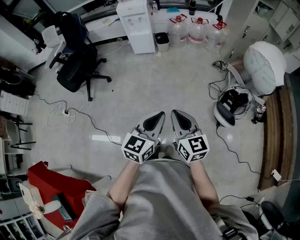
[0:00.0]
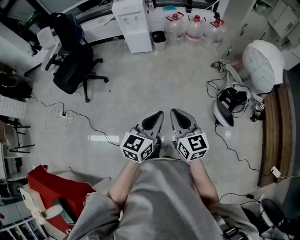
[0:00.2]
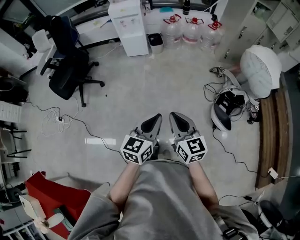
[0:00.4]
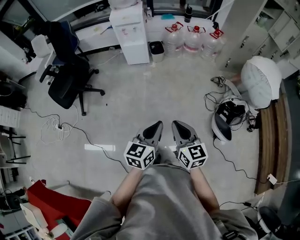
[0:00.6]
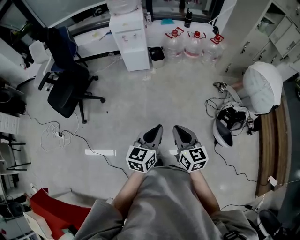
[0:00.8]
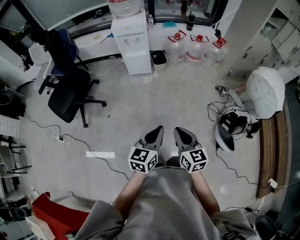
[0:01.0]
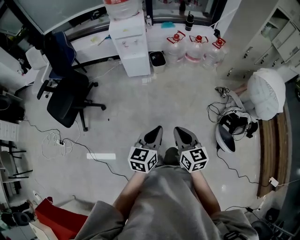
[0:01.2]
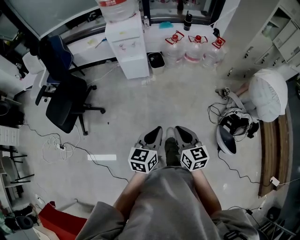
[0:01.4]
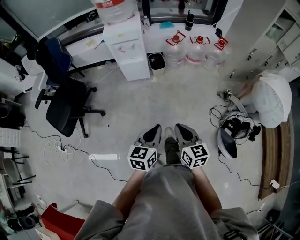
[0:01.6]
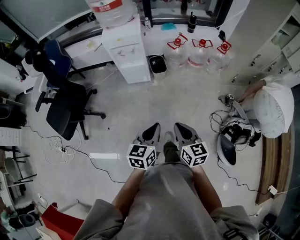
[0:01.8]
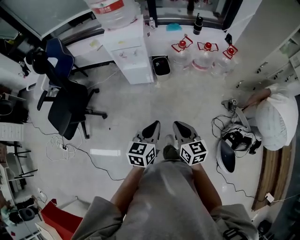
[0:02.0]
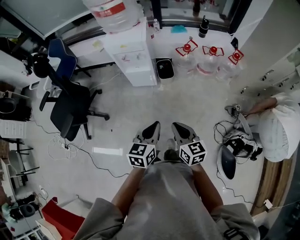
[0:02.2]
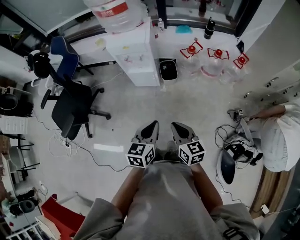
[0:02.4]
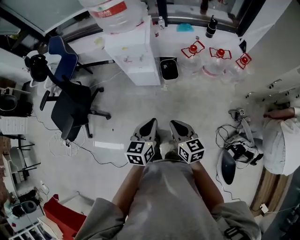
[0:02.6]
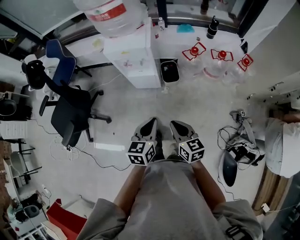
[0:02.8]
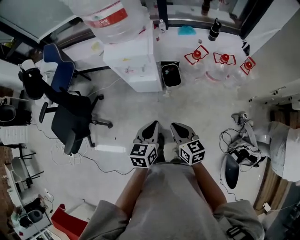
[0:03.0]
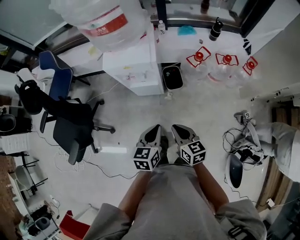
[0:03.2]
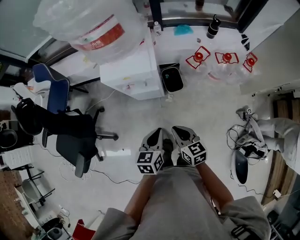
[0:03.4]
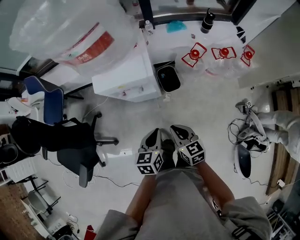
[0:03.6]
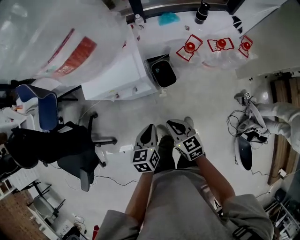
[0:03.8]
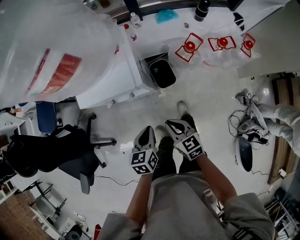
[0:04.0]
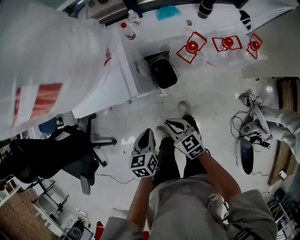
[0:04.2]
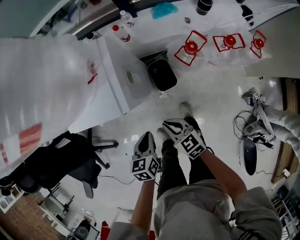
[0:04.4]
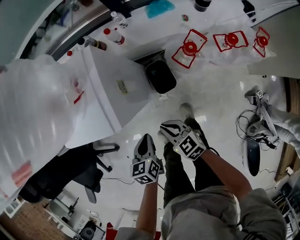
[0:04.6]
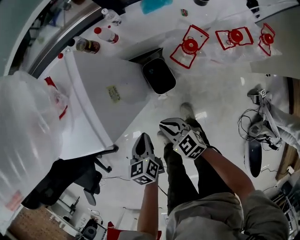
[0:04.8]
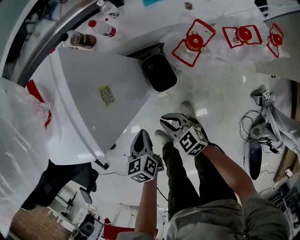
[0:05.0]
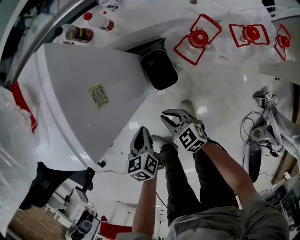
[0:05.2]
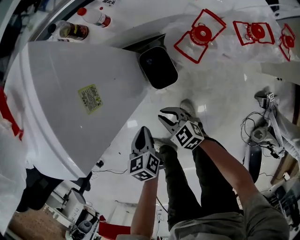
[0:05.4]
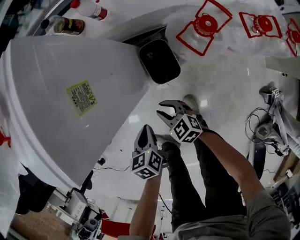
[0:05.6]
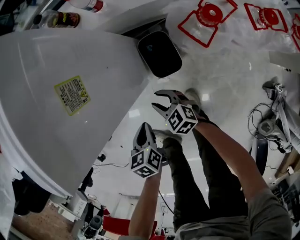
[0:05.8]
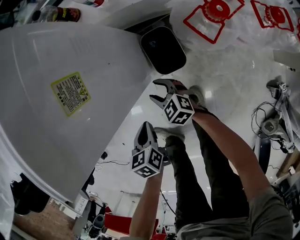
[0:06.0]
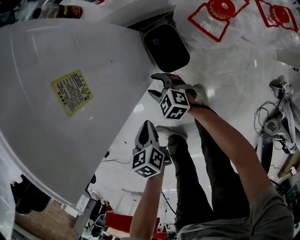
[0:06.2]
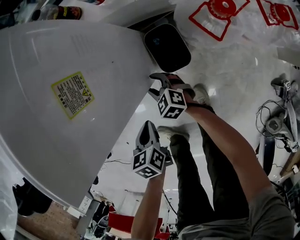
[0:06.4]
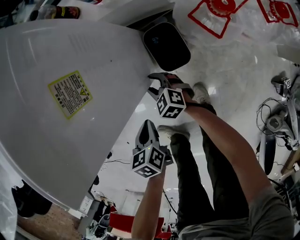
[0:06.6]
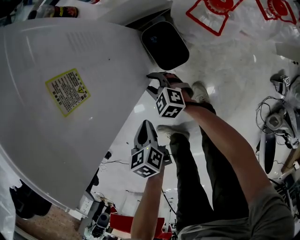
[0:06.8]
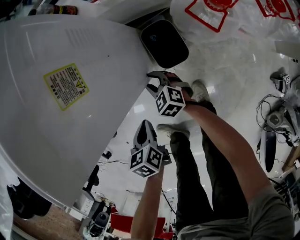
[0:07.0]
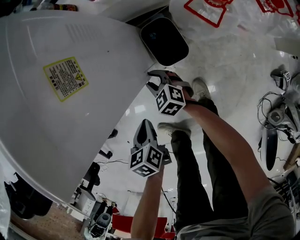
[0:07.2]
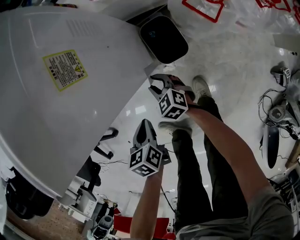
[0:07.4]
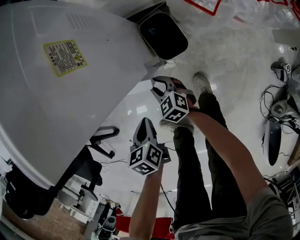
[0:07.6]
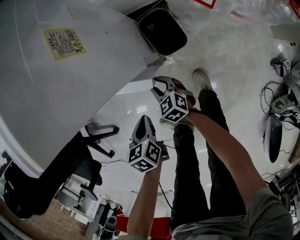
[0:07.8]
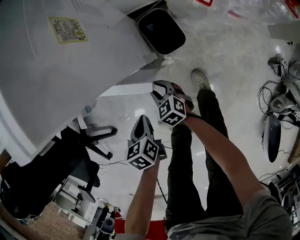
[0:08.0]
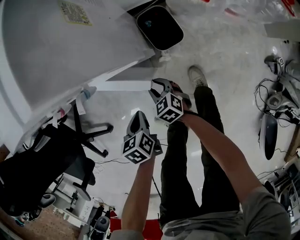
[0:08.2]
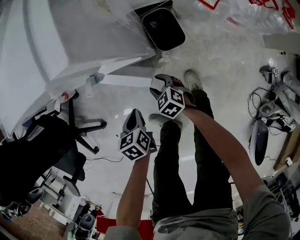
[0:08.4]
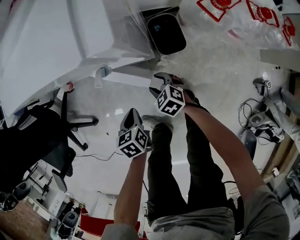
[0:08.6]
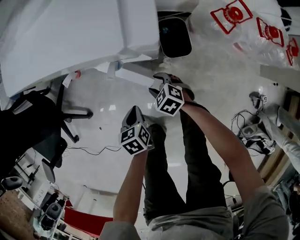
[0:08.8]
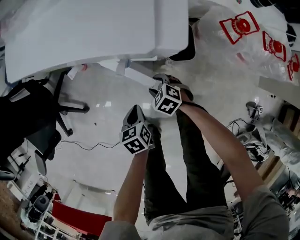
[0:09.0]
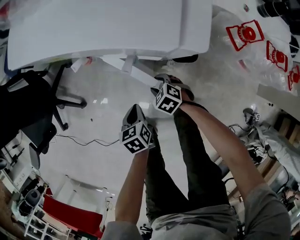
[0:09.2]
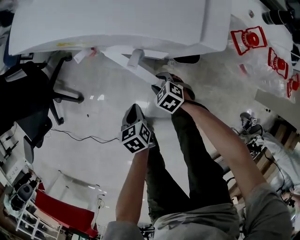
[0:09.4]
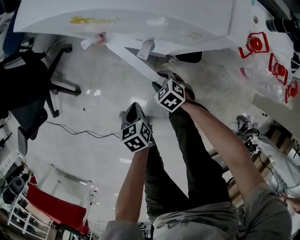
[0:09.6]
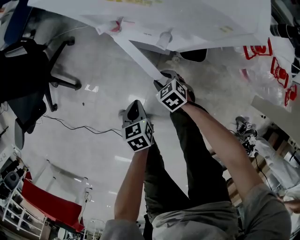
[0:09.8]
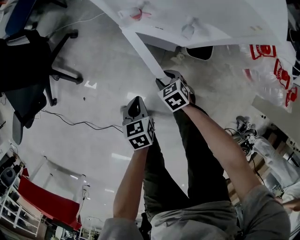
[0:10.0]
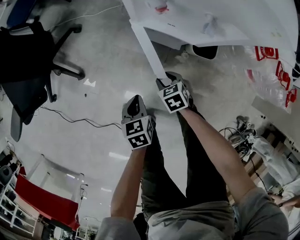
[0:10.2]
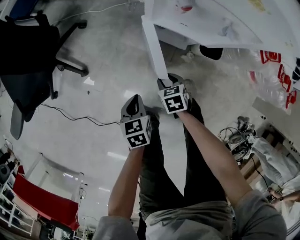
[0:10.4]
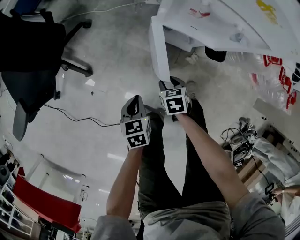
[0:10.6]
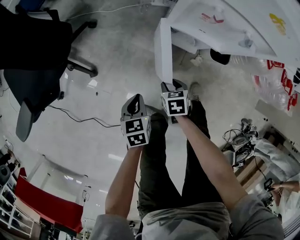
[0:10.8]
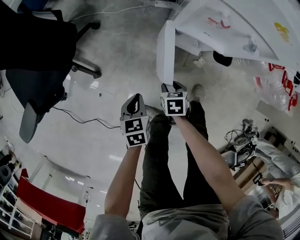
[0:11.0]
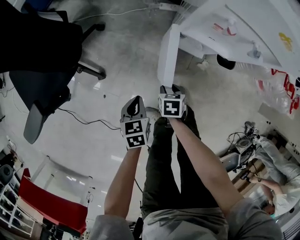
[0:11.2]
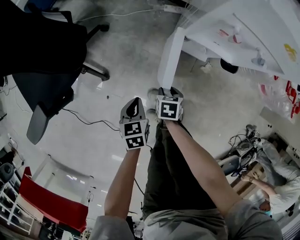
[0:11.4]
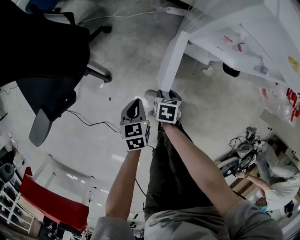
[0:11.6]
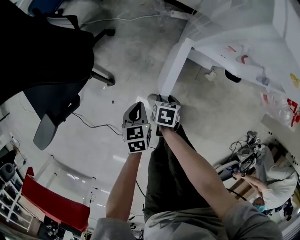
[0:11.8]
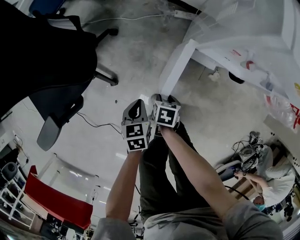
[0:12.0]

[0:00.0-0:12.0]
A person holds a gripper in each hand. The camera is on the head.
0:00.0 to 0:01.6: Both grippers travel together forward, roughly 35 cm.
0:01.6 to 0:03.0: The two grippers go roughly 35 cm forward.
0:03.0 to 0:04.4: The two grippers go some 30 cm forward and downward.
0:04.4 to 0:06.0: Both grippers travel together downward, about 25 cm. The left gripper swivels roughly 20 degrees. The right gripper changes its angle by approximately 20 degrees, and opens up.
0:06.0 to 0:07.6: The right gripper changes place by about 5 cm. Meanwhile the left gripper heads to the left, covering roughly 5 cm.
0:07.6 to 0:09.0: The left gripper shifts by approximately 5 cm, while the right gripper ends up some 10 cm from where it was, and changes its angle by roughly 30 degrees.
0:09.0 to 0:10.4: Both grippers travel together to the left, some 15 cm. The right gripper changes its angle by some 20 degrees.
0:10.4 to 0:12.0: The left gripper shifts by some 20 cm, while the right gripper moves approximately 20 cm, and turns by some 30 degrees.

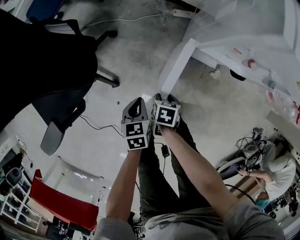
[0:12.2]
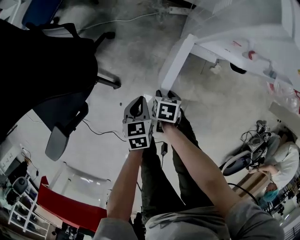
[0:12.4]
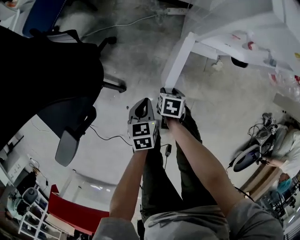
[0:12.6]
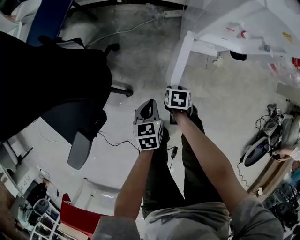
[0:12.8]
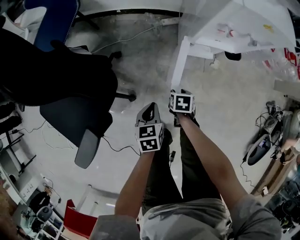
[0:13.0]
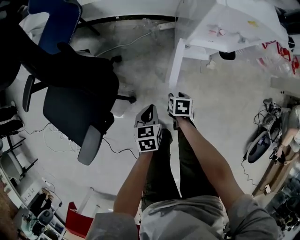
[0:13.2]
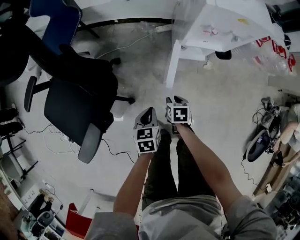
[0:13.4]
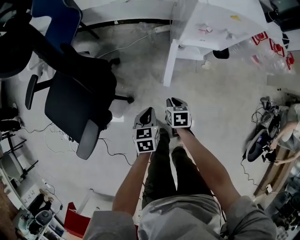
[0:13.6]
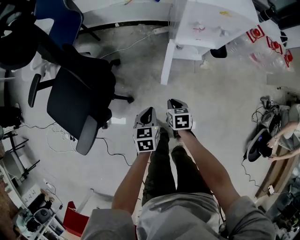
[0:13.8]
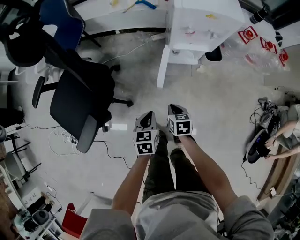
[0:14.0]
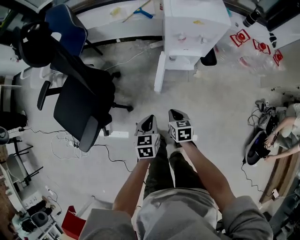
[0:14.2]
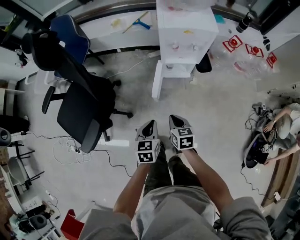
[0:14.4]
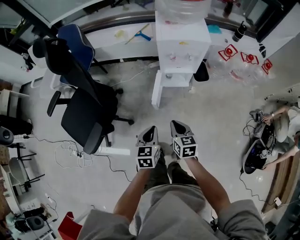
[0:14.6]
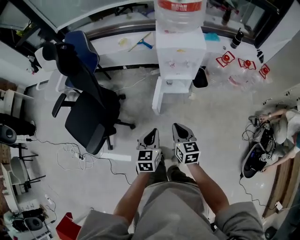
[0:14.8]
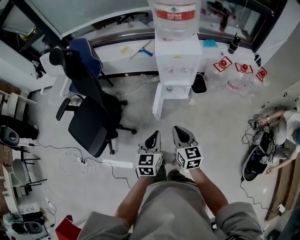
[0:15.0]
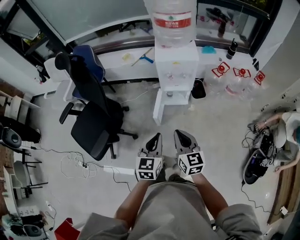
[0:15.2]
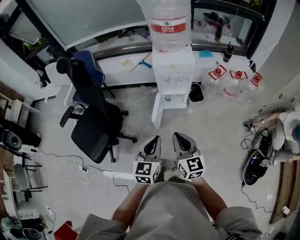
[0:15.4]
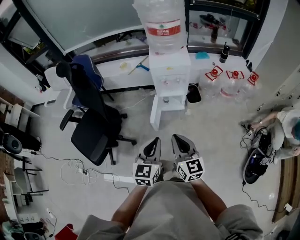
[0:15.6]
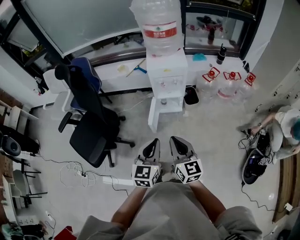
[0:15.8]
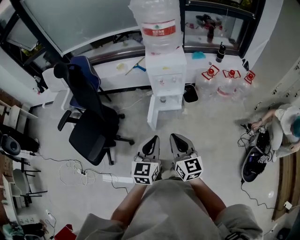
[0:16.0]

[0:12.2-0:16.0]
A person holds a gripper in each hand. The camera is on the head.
0:12.2 to 0:13.4: The grippers both shift upward by some 10 cm.
0:13.4 to 0:14.8: The right gripper moves upward and backward, some 40 cm, tilts its fingers approximately 40 degrees upward, and closes. Meanwhile the left gripper goes approximately 30 cm upward, backward and to the right, and swivels some 20 degrees.
0:14.8 to 0:16.0: Both grippers move upward and backward, roughly 20 cm. The right gripper rotates about 20 degrees. Meanwhile the left gripper changes its angle by approximately 20 degrees.

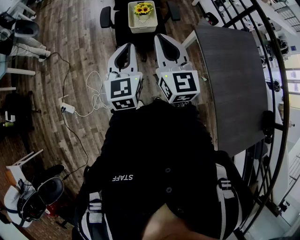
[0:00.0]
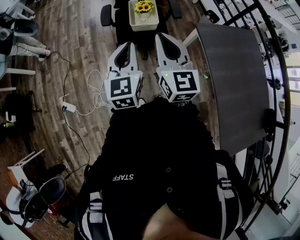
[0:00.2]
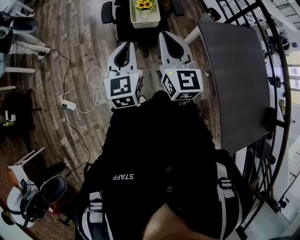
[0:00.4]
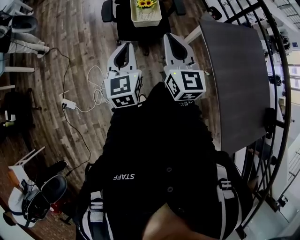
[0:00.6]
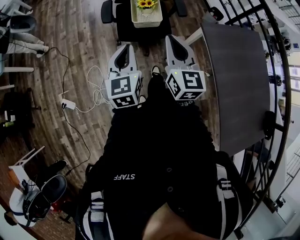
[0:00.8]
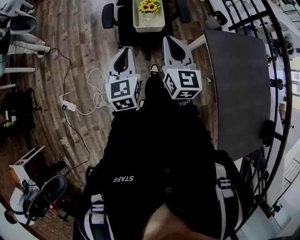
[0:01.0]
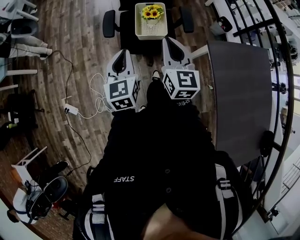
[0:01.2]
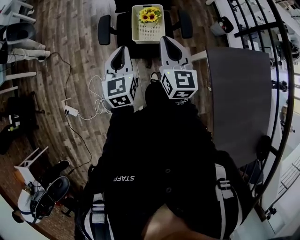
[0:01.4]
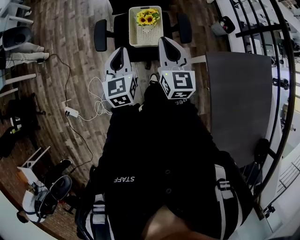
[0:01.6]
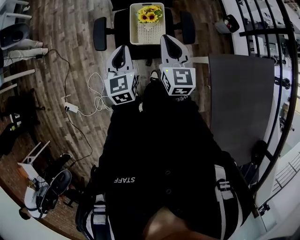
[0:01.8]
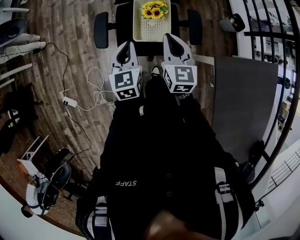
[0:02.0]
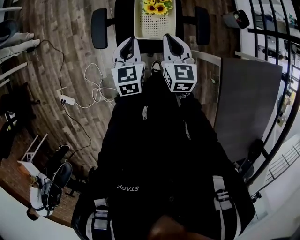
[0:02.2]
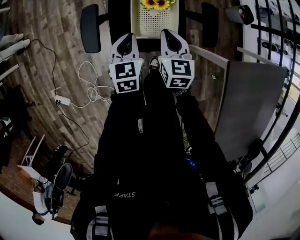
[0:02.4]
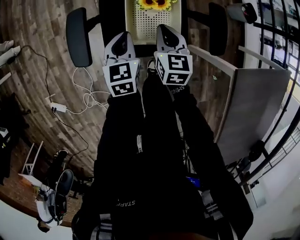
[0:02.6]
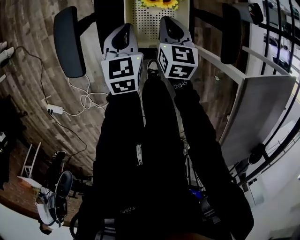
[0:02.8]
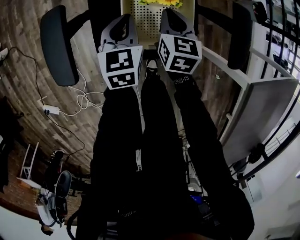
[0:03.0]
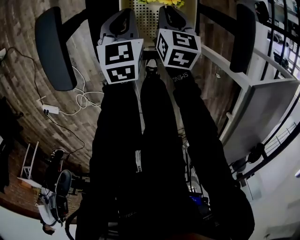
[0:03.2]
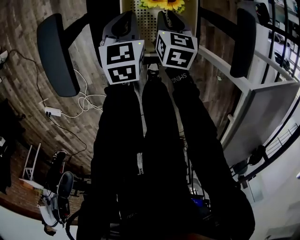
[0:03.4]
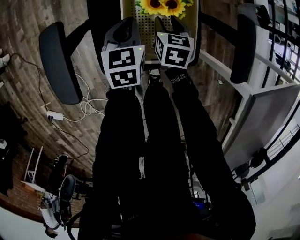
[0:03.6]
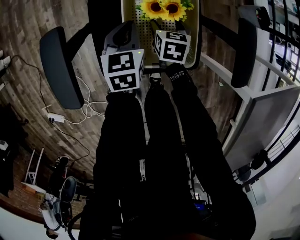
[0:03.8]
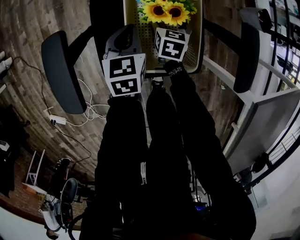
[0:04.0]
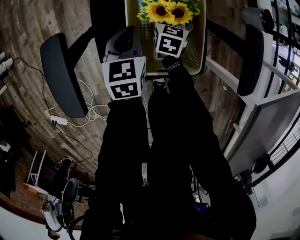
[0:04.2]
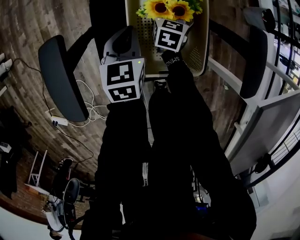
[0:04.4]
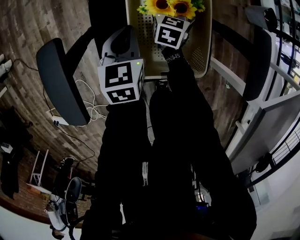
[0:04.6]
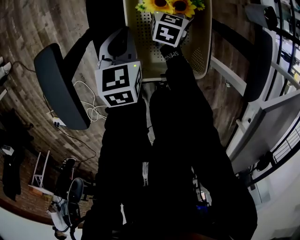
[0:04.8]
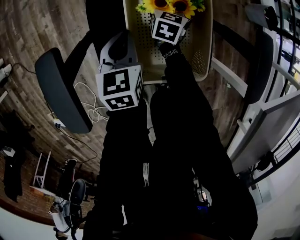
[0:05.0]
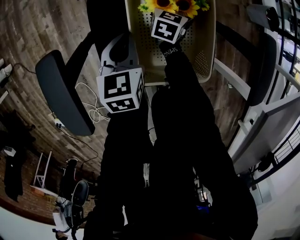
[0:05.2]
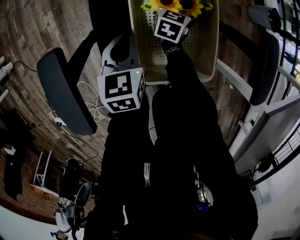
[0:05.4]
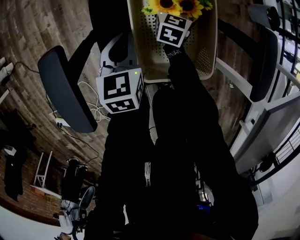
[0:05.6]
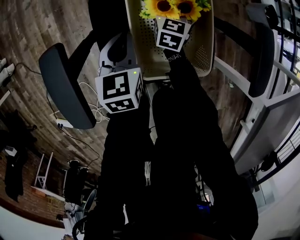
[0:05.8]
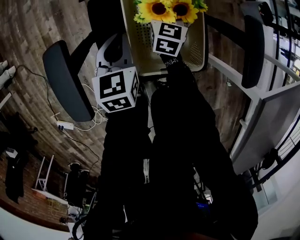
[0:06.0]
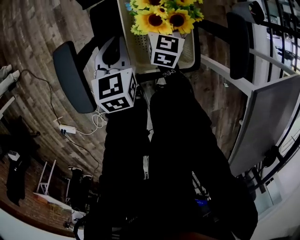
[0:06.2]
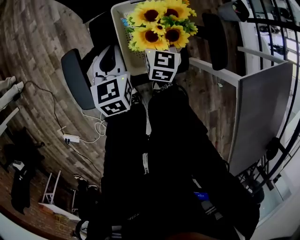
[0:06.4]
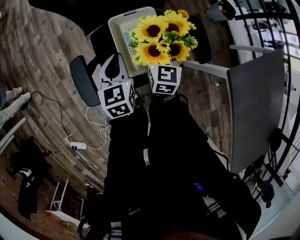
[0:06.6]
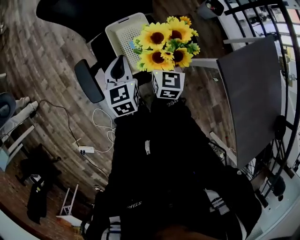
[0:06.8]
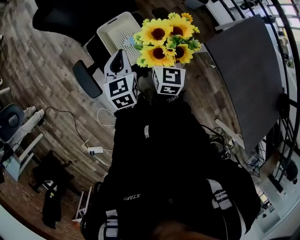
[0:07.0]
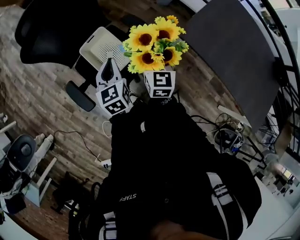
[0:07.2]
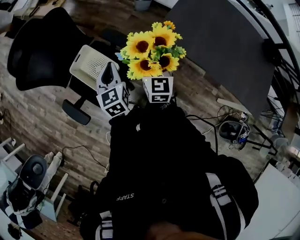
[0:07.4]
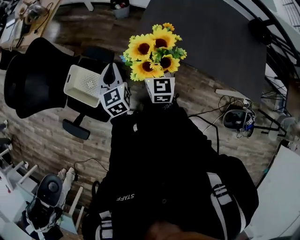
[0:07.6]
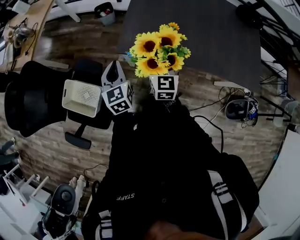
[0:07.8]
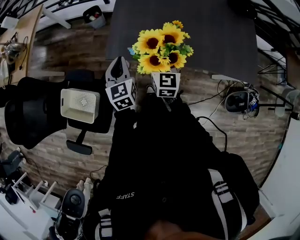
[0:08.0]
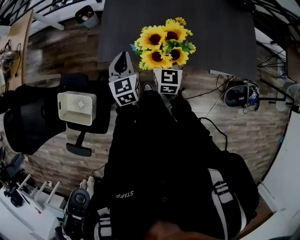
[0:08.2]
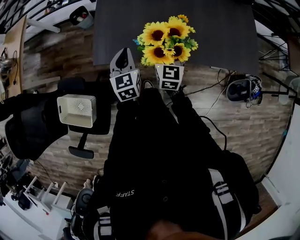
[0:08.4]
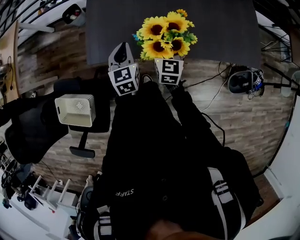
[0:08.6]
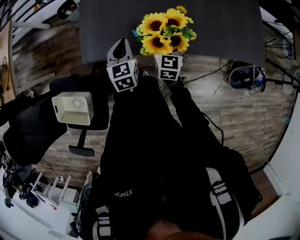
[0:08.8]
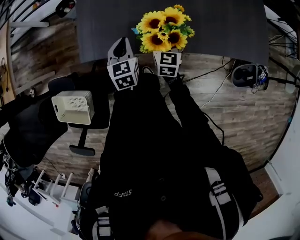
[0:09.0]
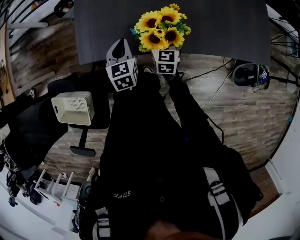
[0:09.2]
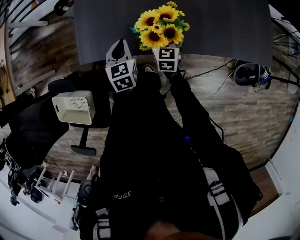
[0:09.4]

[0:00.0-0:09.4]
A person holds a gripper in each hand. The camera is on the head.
0:00.0 to 0:01.6: Both grippers move forward, about 35 cm.
0:01.6 to 0:03.2: Both grippers move downward and forward, some 60 cm. The right gripper angles its fingers downward, by about 30 degrees; the left gripper rotates some 20 degrees.
0:03.2 to 0:04.8: The right gripper is displaced downward and forward by approximately 20 cm, and opens its fingers. Meanwhile the left gripper shifts about 5 cm downward.
0:04.8 to 0:06.2: The left gripper shifts some 10 cm upward, while the right gripper shifts about 15 cm upward.
0:06.2 to 0:07.8: The pair of grippers is taken approximately 60 cm. The left gripper rotates some 60 degrees; the right gripper turns by approximately 50 degrees.
0:07.8 to 0:09.4: Both grippers travel together downward, to the right and forward, roughly 30 cm. The left gripper rotates about 20 degrees, while the right gripper turns by some 20 degrees.
